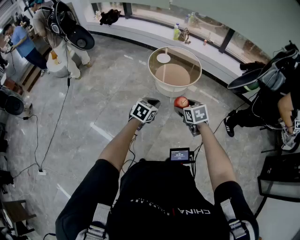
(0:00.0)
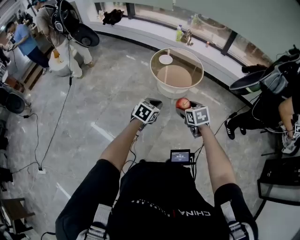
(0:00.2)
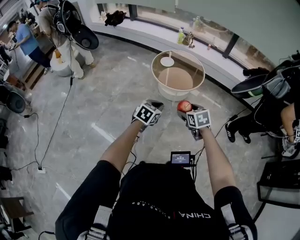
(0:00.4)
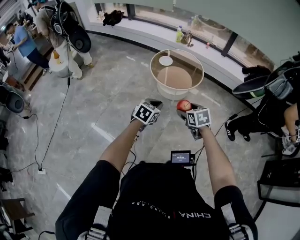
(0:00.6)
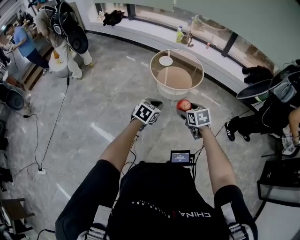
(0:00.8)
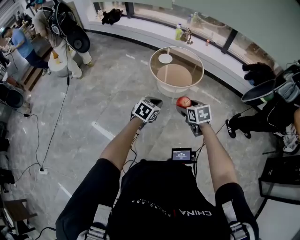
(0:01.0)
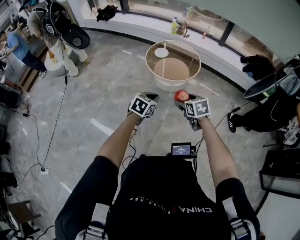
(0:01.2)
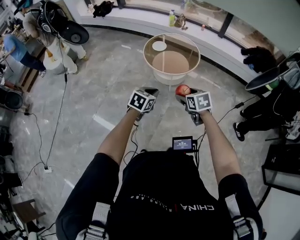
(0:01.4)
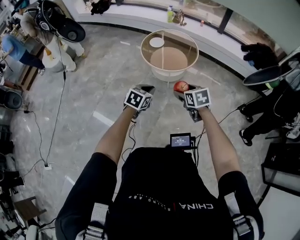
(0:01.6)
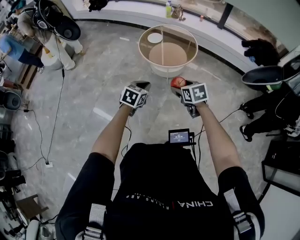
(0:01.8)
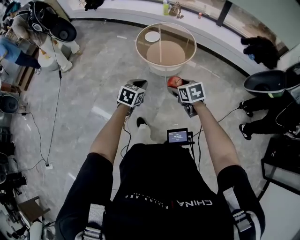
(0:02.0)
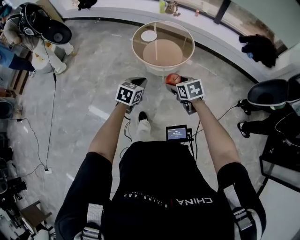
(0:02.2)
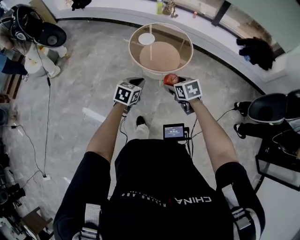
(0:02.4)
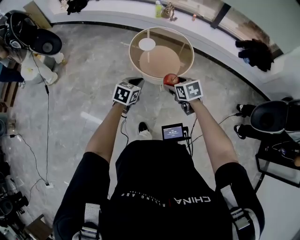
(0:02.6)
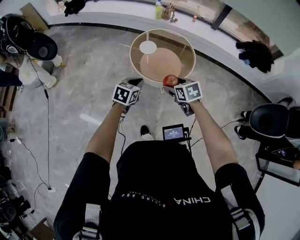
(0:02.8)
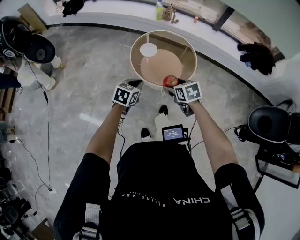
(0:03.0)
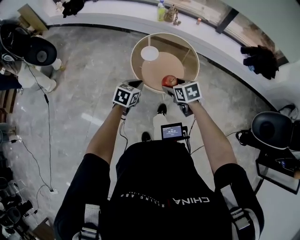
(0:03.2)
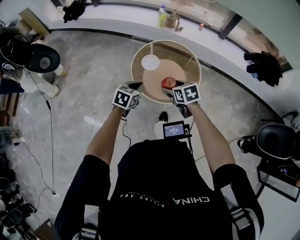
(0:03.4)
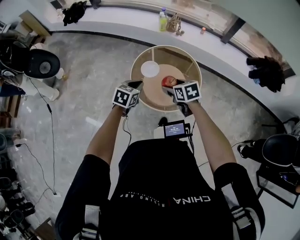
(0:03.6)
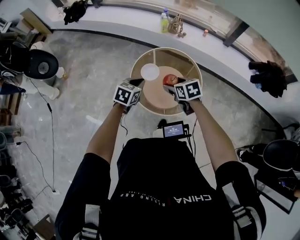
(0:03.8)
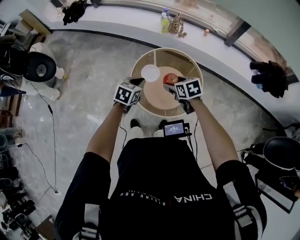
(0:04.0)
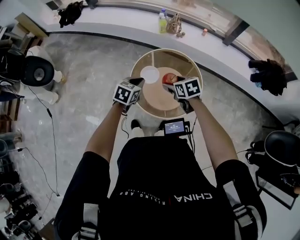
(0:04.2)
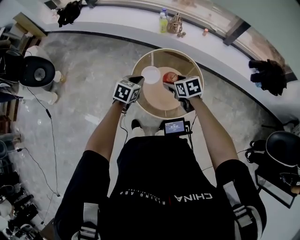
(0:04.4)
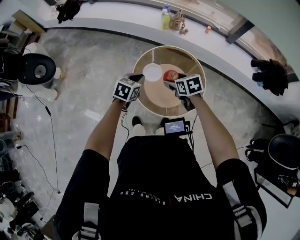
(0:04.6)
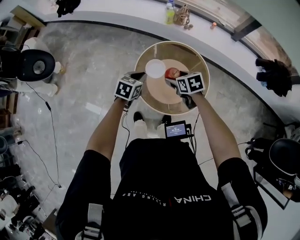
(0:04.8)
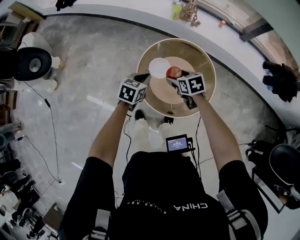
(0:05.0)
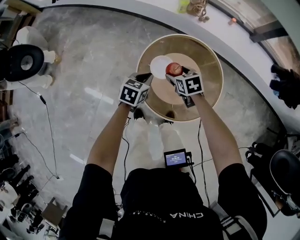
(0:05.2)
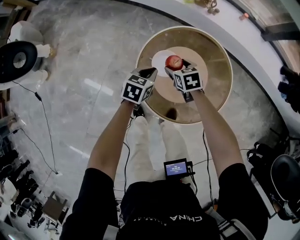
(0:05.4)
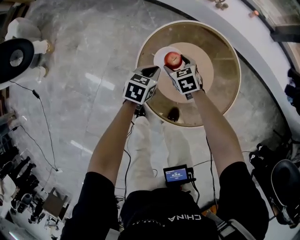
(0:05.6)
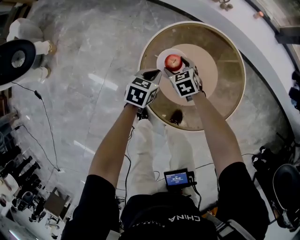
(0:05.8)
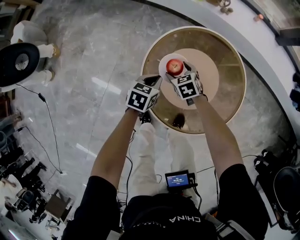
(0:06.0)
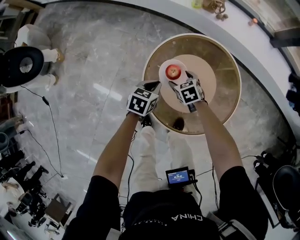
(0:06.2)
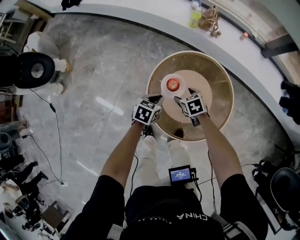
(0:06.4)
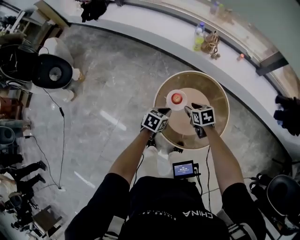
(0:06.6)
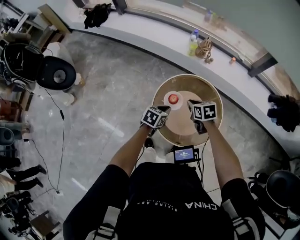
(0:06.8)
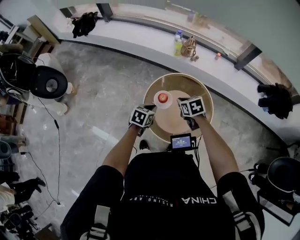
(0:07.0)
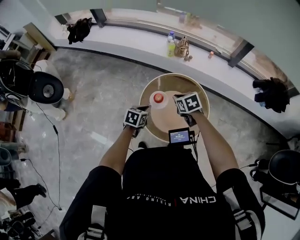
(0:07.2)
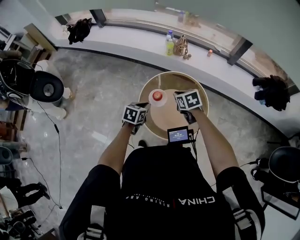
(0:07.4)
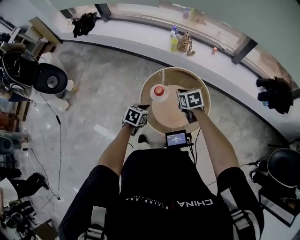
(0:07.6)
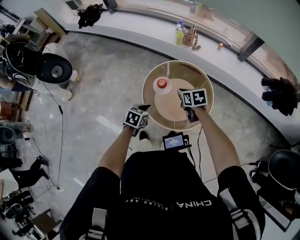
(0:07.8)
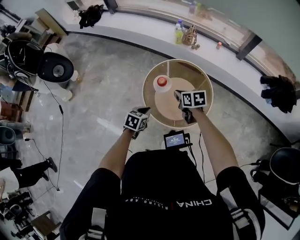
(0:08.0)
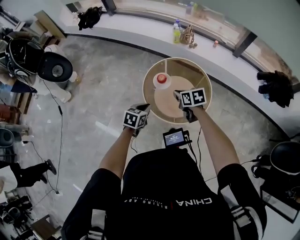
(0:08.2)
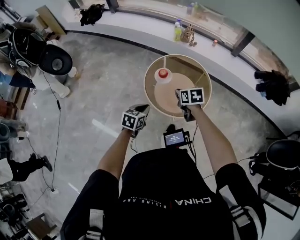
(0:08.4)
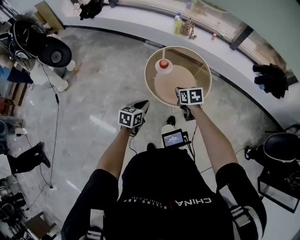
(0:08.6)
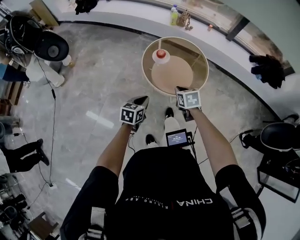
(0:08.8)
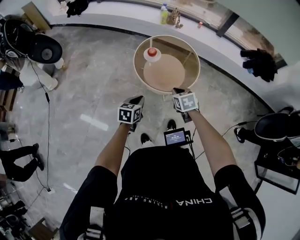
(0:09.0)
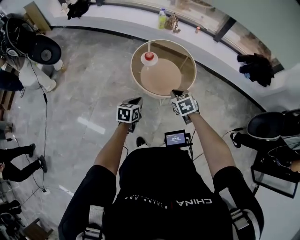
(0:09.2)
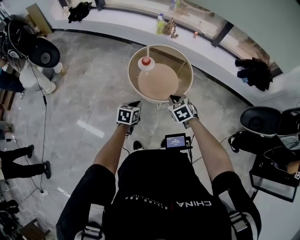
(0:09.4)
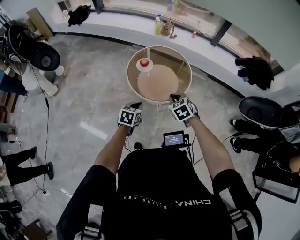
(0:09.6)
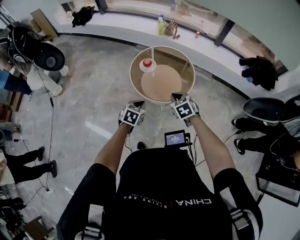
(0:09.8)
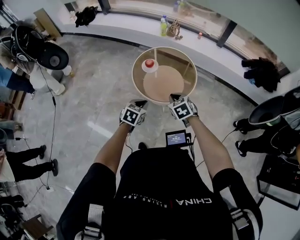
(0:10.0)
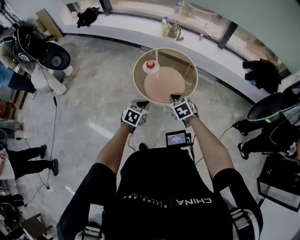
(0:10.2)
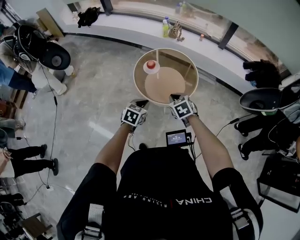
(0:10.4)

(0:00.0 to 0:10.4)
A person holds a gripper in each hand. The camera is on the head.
0:00.0 - 0:01.4: The right gripper ends up about 5 cm from where it was.
0:01.4 - 0:03.0: The two grippers go roughly 40 cm forward.
0:03.0 - 0:04.4: Both grippers travel together forward, roughly 35 cm.
0:04.4 - 0:06.0: The grippers both shift downward and forward by roughly 40 cm.
0:06.0 - 0:07.4: The right gripper shifts roughly 40 cm upward, and closes its fingers; the left gripper heads upward and backward, covering approximately 35 cm.
0:07.4 - 0:09.0: Both grippers move backward, some 40 cm.
0:09.0 - 0:10.4: The left gripper is displaced to the right by approximately 15 cm, while the right gripper travels to the right by roughly 10 cm.

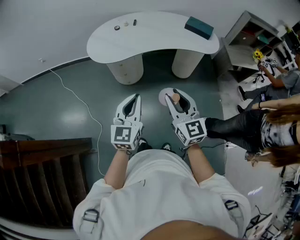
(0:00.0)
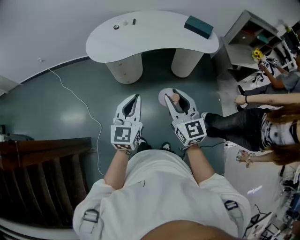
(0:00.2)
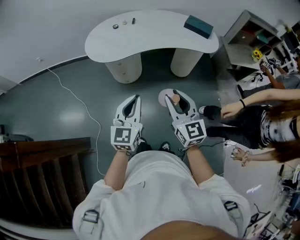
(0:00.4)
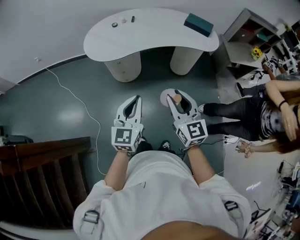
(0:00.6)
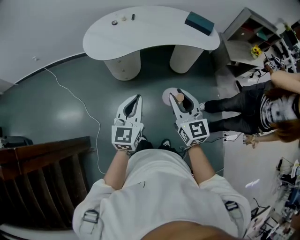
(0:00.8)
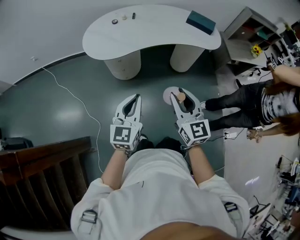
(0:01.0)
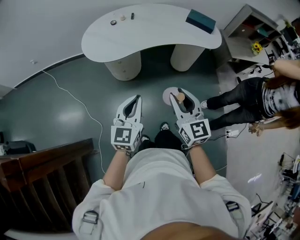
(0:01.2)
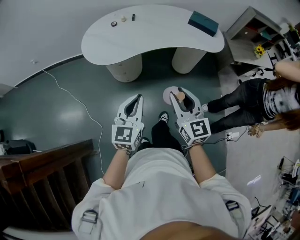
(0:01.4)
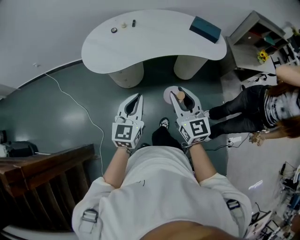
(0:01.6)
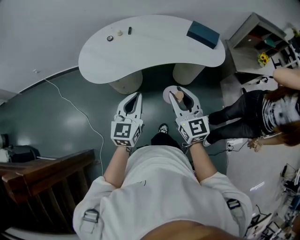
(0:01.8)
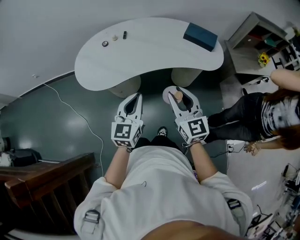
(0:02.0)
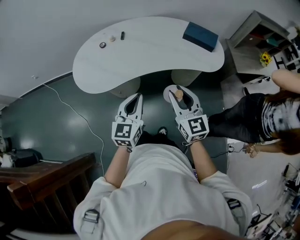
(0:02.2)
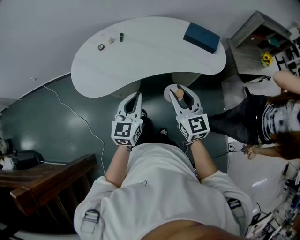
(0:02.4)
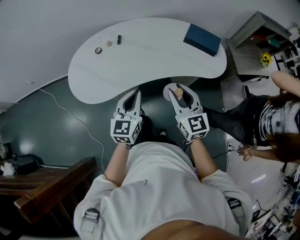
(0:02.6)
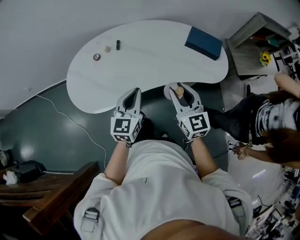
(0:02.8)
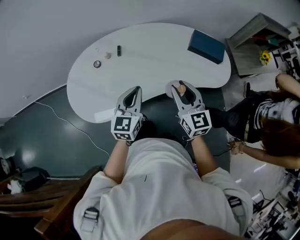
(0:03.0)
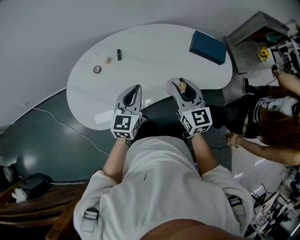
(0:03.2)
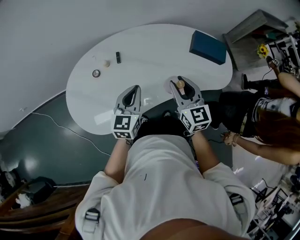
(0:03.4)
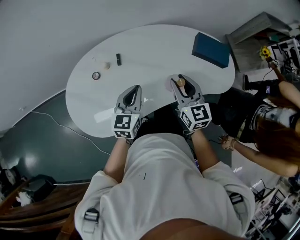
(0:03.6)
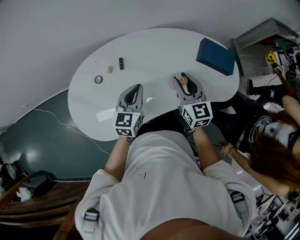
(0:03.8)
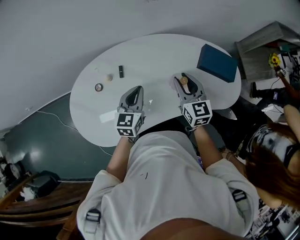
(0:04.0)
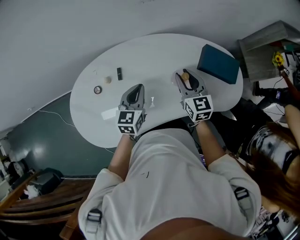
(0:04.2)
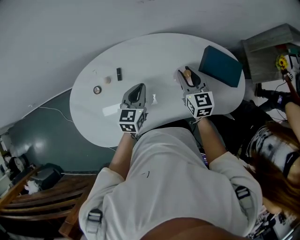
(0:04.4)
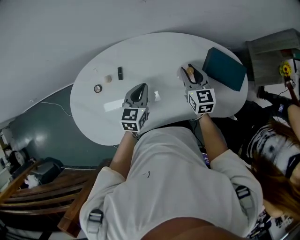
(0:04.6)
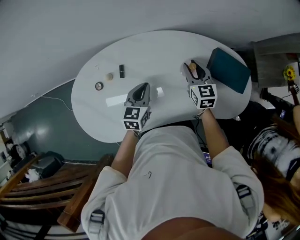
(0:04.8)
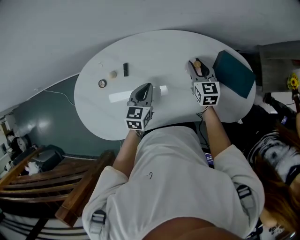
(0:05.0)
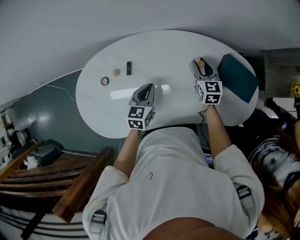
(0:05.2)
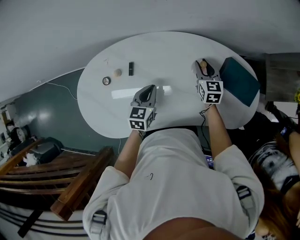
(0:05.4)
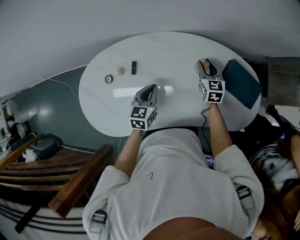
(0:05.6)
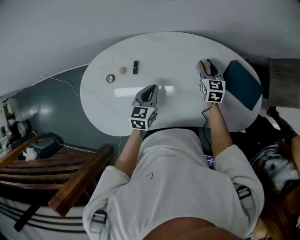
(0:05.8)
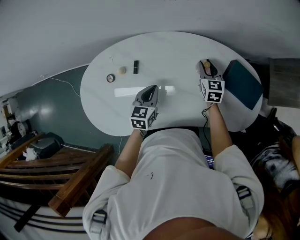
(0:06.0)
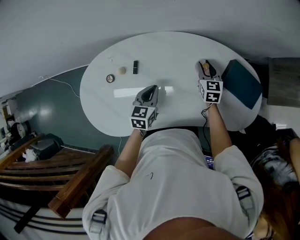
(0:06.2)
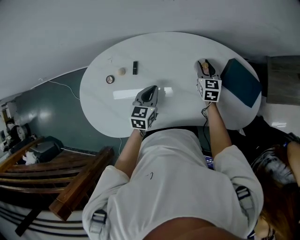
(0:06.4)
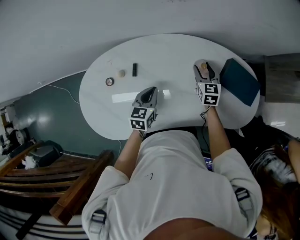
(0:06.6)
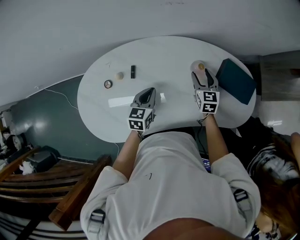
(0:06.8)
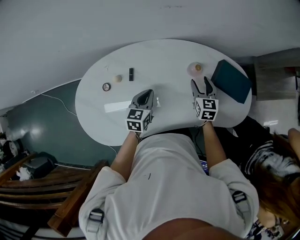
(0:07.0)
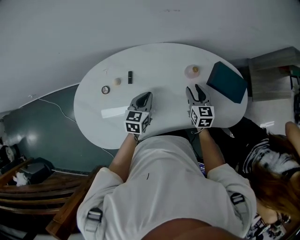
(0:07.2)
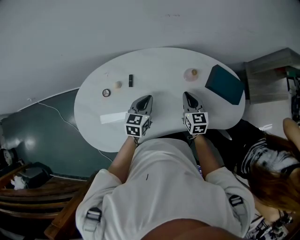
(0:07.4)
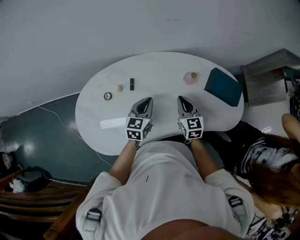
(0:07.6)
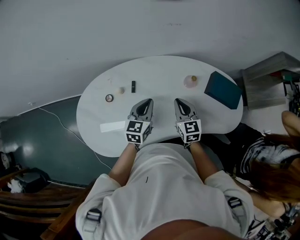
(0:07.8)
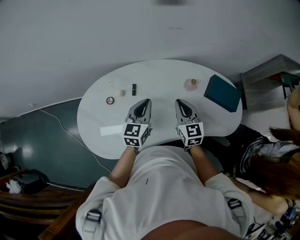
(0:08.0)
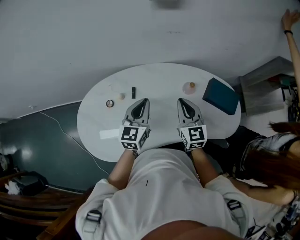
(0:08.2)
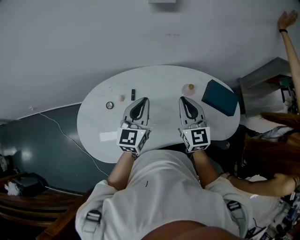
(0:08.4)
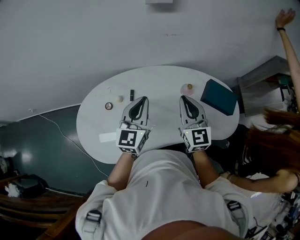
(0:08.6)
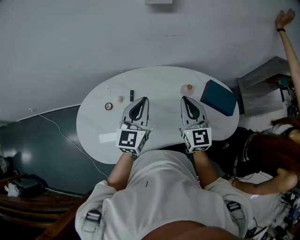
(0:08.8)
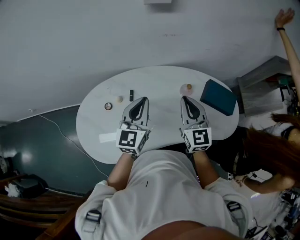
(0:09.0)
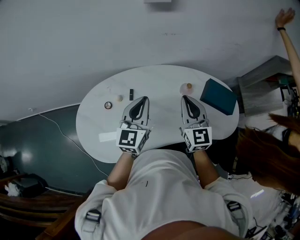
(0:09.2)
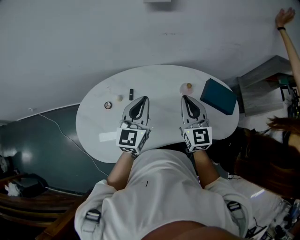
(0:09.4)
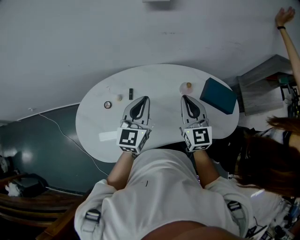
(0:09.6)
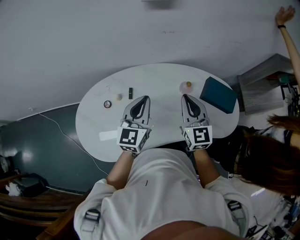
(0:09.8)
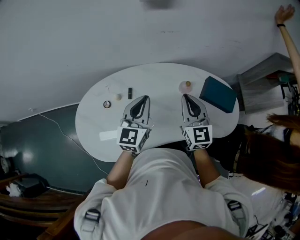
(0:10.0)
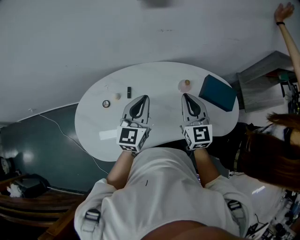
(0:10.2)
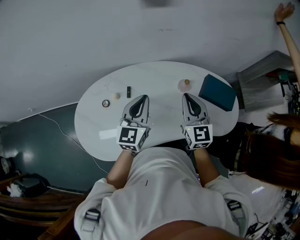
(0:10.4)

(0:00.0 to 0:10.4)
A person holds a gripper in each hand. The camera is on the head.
0:00.0 - 0:01.4: The two grippers go approximately 10 cm forward.
0:01.4 - 0:03.0: The two grippers travel together, forward, some 40 cm.
0:03.0 - 0:04.4: Both grippers travel together forward, approximately 25 cm.
0:04.4 - 0:06.0: The right gripper travels downward and forward by approximately 15 cm; the left gripper travels downward by roughly 5 cm.
0:06.0 - 0:07.4: The right gripper shifts some 15 cm backward and upward, and closes.
0:07.4 - 0:09.0: Both grippers move upward, about 20 cm. The left gripper swivels about 30 degrees, while the right gripper rotates some 20 degrees.
0:09.0 - 0:10.4: The grippers make only small movements.

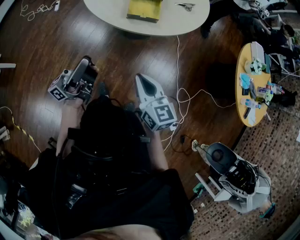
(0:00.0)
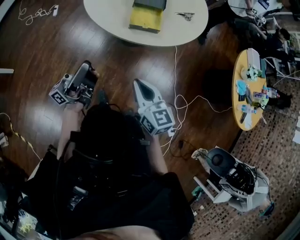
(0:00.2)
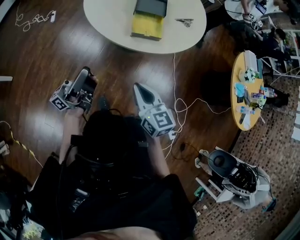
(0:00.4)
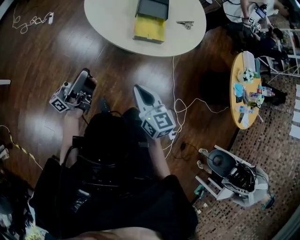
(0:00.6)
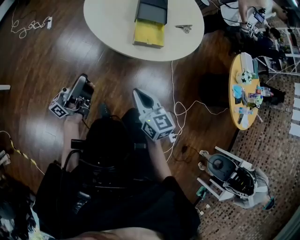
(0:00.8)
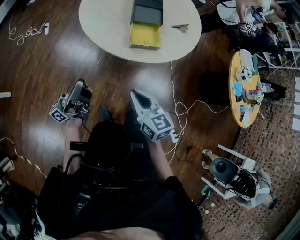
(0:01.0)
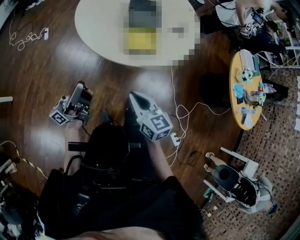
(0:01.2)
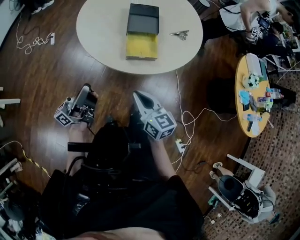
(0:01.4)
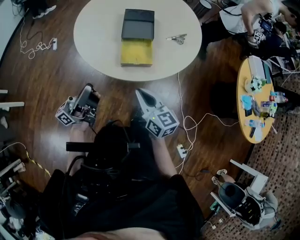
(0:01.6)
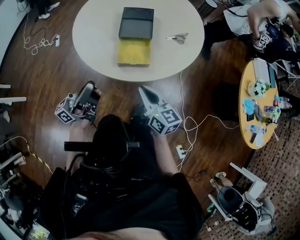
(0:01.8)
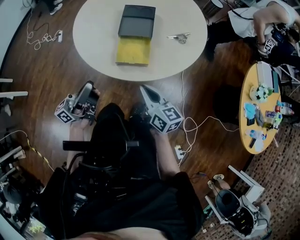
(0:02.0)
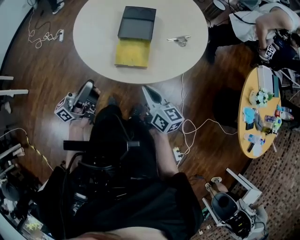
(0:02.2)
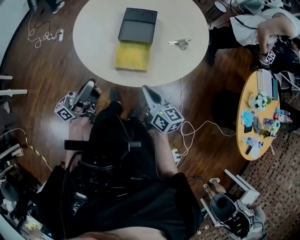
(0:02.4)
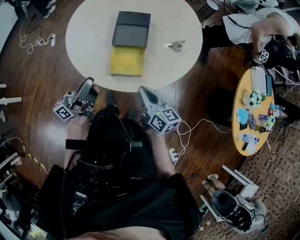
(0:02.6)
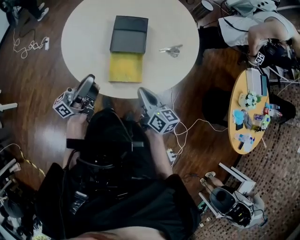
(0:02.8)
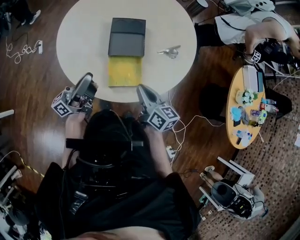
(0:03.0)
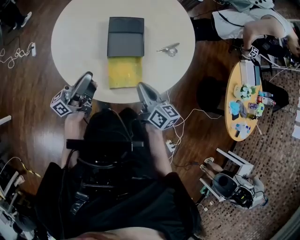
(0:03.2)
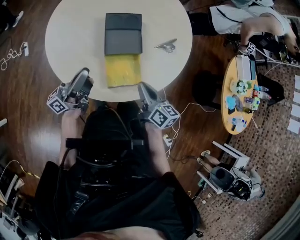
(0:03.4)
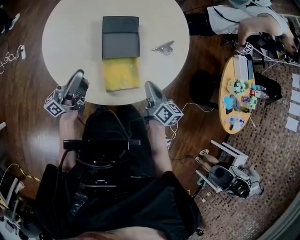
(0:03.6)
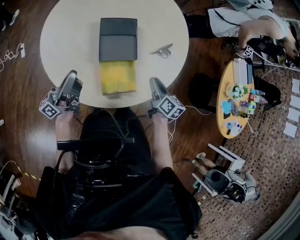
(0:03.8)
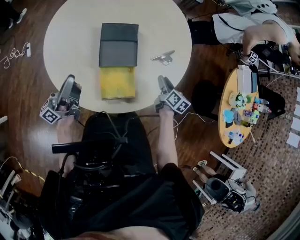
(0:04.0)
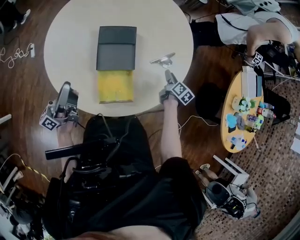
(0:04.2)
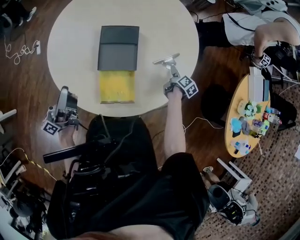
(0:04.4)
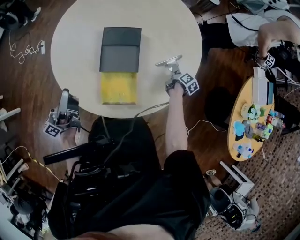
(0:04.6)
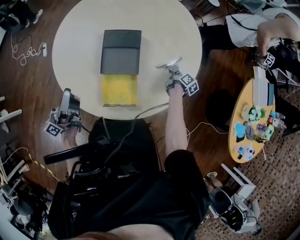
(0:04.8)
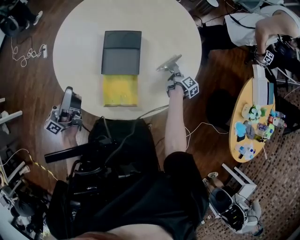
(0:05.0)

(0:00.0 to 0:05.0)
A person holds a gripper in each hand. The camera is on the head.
0:00.0 - 0:01.6: The grippers both shift forward by some 15 cm.
0:01.6 - 0:03.4: The two grippers go some 20 cm forward. The right gripper rotates approximately 20 degrees.
0:03.4 - 0:05.0: The right gripper travels forward, to the right and downward by approximately 40 cm, rotates some 40 degrees, and opens, then closes once more.
